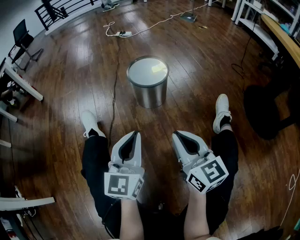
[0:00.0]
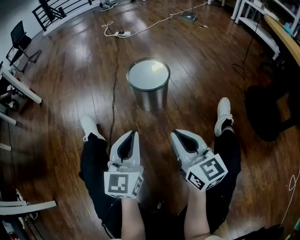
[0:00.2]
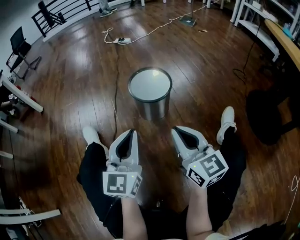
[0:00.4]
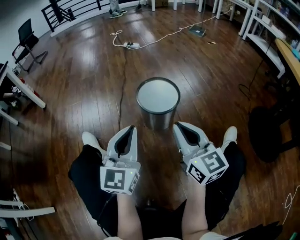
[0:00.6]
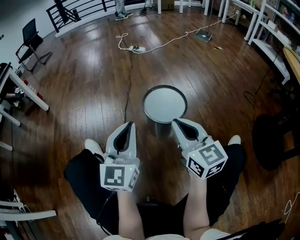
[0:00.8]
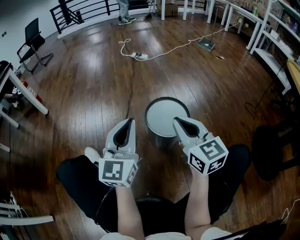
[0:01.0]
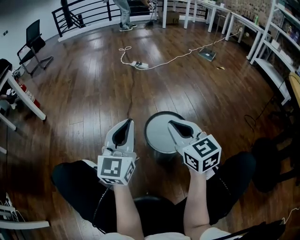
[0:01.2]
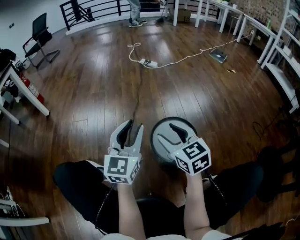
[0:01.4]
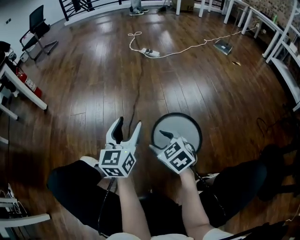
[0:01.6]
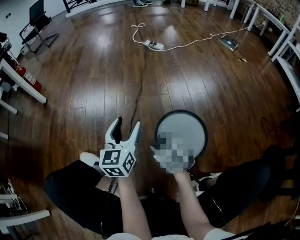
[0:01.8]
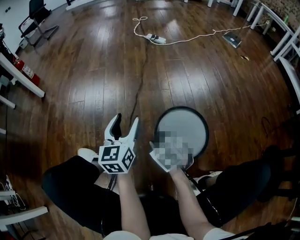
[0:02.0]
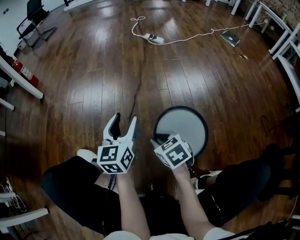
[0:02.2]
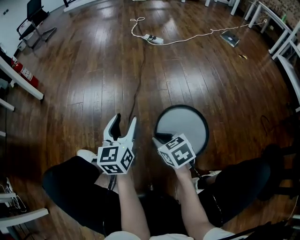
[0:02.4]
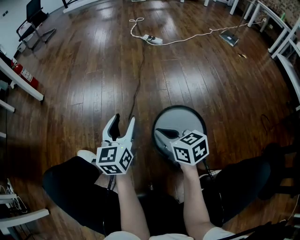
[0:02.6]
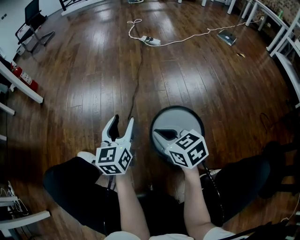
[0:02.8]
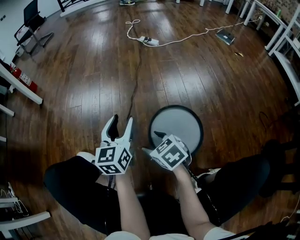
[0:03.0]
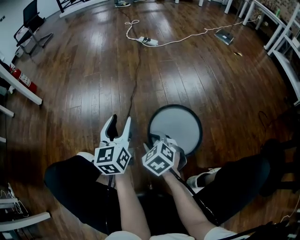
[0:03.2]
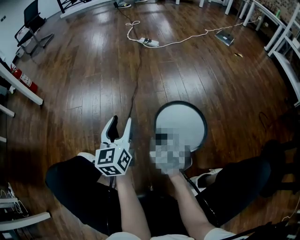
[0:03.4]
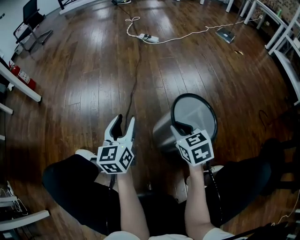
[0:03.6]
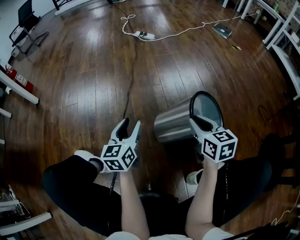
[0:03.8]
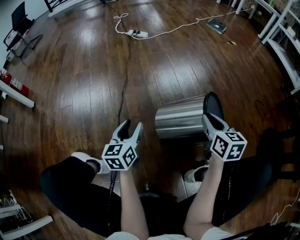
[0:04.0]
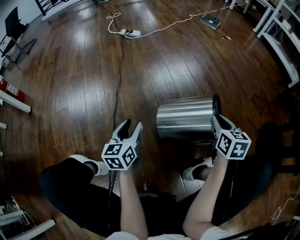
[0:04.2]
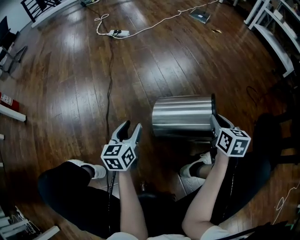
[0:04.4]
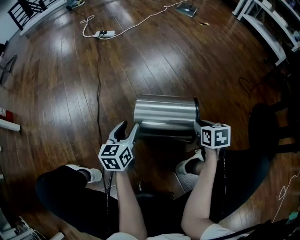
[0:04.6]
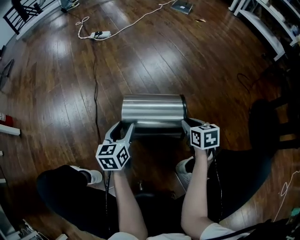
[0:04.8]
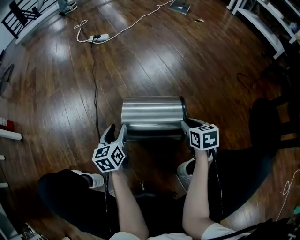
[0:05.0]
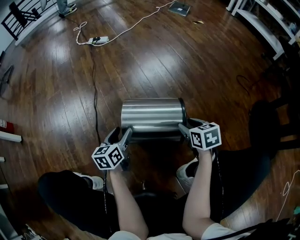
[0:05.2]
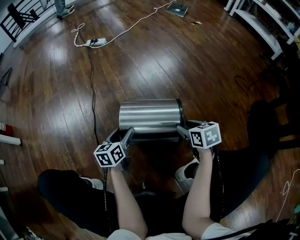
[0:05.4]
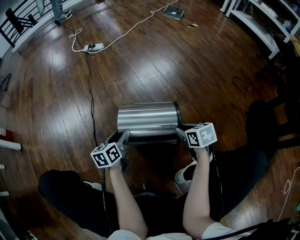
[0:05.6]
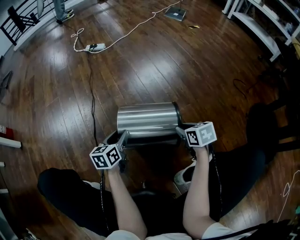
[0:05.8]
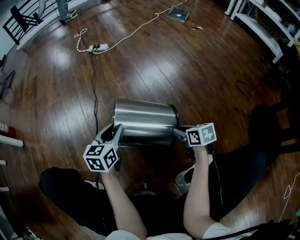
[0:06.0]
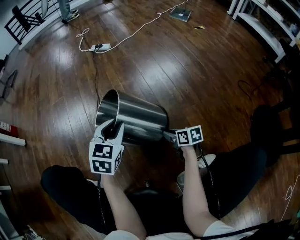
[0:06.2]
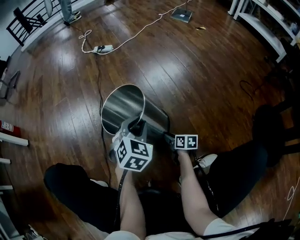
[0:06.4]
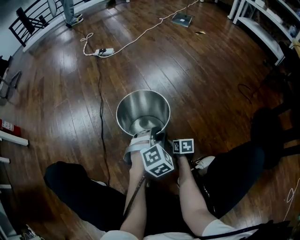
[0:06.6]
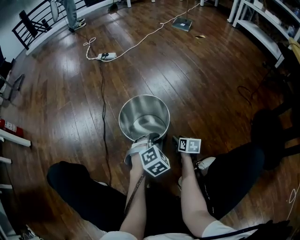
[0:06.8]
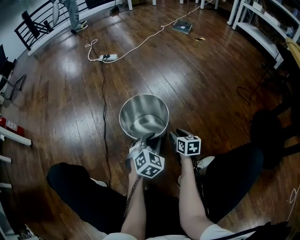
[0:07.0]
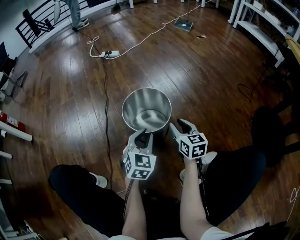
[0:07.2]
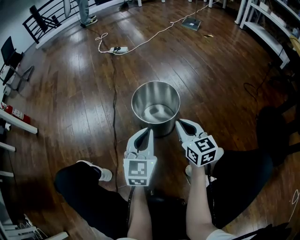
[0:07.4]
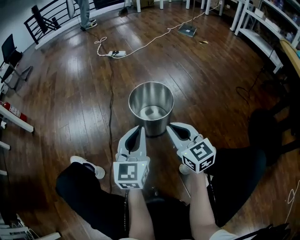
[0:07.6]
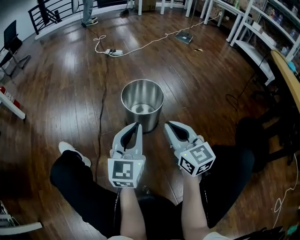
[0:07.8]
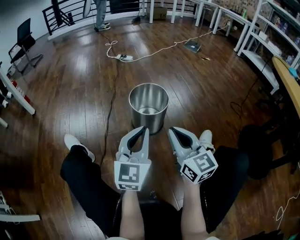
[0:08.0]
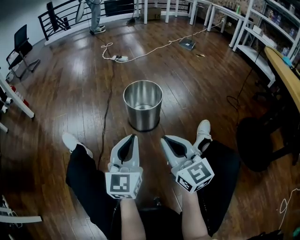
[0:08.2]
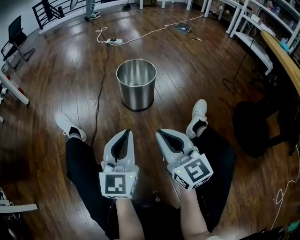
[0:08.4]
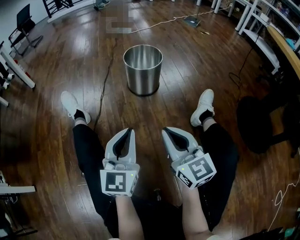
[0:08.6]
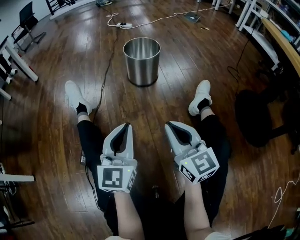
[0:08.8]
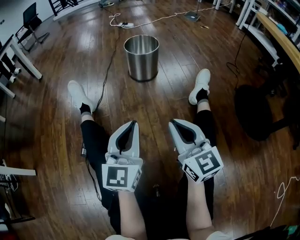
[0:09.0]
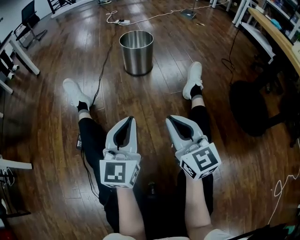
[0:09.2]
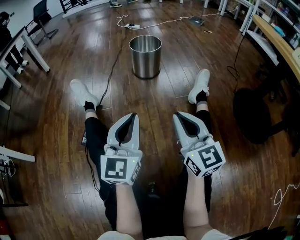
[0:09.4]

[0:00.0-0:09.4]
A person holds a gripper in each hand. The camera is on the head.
0:00.0 to 0:01.6: Both grippers are carried forward, about 40 cm. The left gripper opens, while the right gripper tilts its fingers some 40 degrees downward, and opens up.
0:01.6 to 0:03.2: The left gripper changes place by some 5 cm, while the right gripper swings up and down, about 10 cm each way, with 2 reversals, and closes its fingers.
0:03.2 to 0:04.8: The right gripper goes upward and returns, some 10 cm each way, twists about 50 degrees clockwise, seen from behind, and closes its fingers. Meanwhile the left gripper shifts by roughly 20 cm, and rotates some 30 degrees.
0:04.8 to 0:06.2: The left gripper shifts roughly 10 cm upward and forward, and changes its angle by roughly 30 degrees, while the right gripper goes some 10 cm downward and to the left, and turns by some 20 degrees.
0:06.2 to 0:07.8: The right gripper is displaced upward and backward by some 35 cm, angles its fingers upward, by approximately 30 degrees, and closes up. The left gripper goes about 25 cm backward and upward, and angles its fingers upward, by some 30 degrees.
0:07.8 to 0:09.4: Both grippers move backward, some 40 cm.

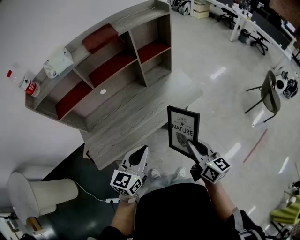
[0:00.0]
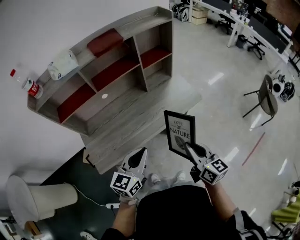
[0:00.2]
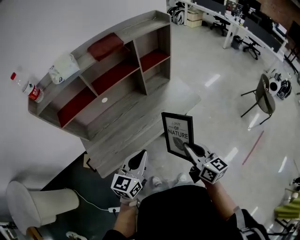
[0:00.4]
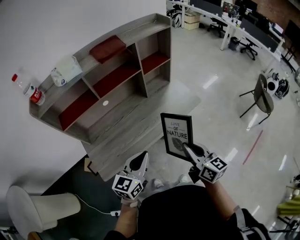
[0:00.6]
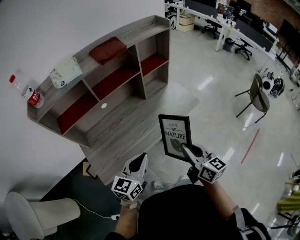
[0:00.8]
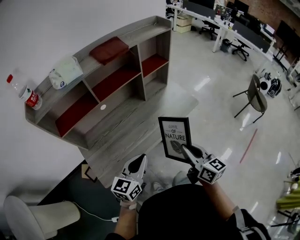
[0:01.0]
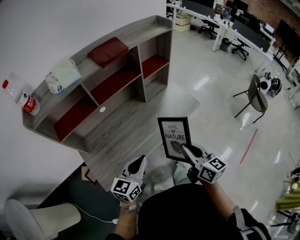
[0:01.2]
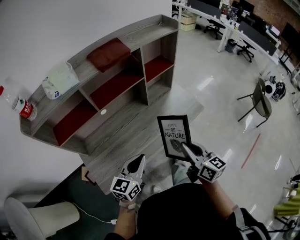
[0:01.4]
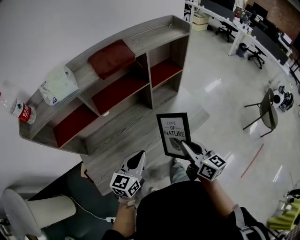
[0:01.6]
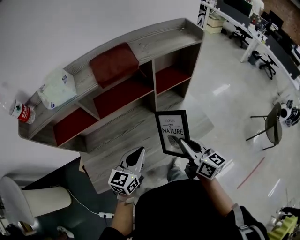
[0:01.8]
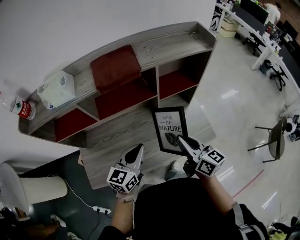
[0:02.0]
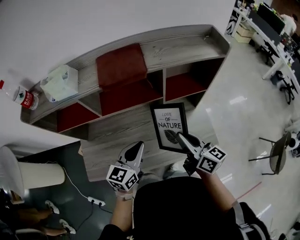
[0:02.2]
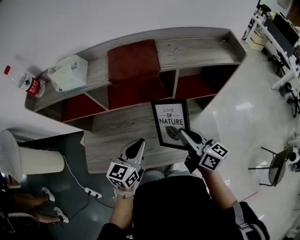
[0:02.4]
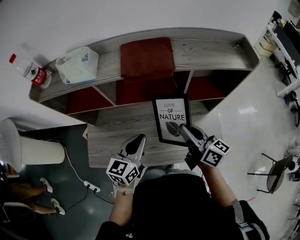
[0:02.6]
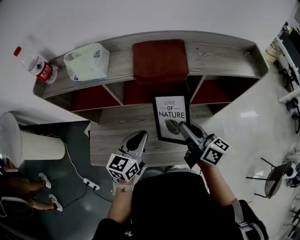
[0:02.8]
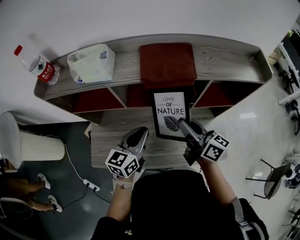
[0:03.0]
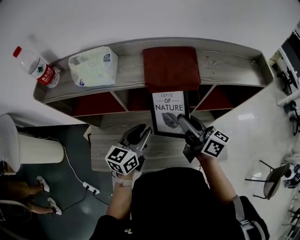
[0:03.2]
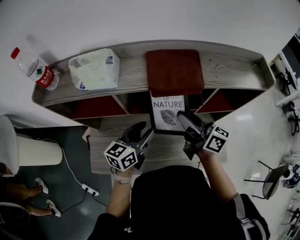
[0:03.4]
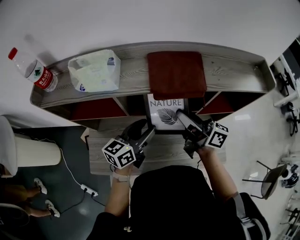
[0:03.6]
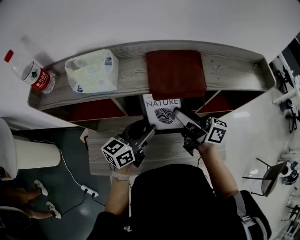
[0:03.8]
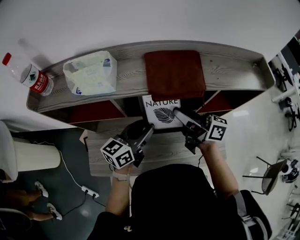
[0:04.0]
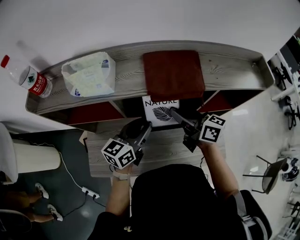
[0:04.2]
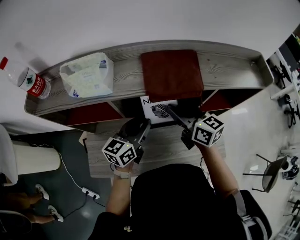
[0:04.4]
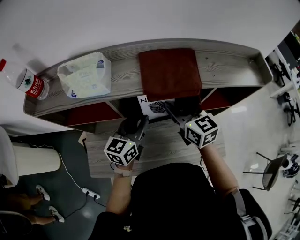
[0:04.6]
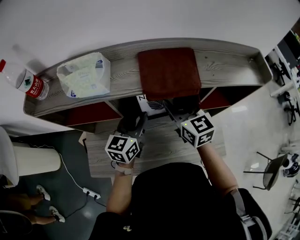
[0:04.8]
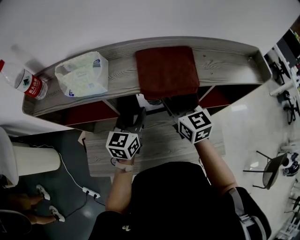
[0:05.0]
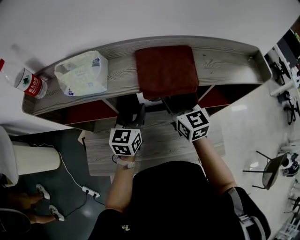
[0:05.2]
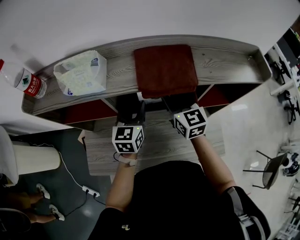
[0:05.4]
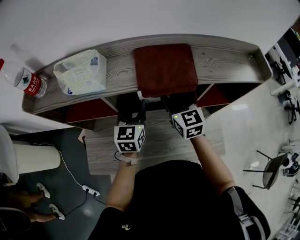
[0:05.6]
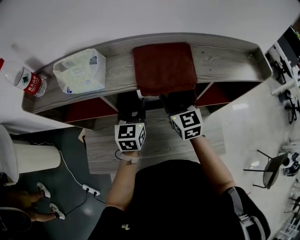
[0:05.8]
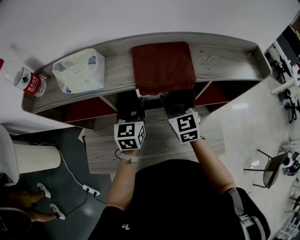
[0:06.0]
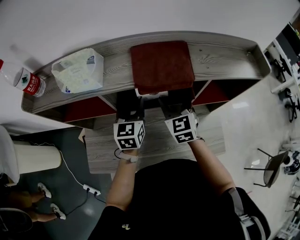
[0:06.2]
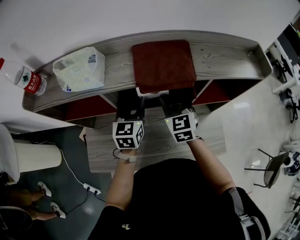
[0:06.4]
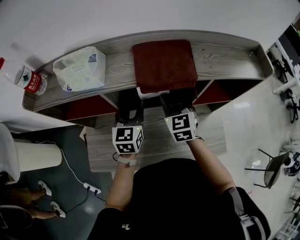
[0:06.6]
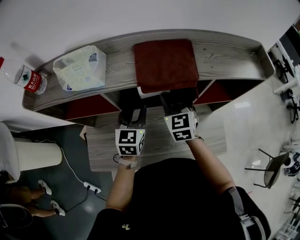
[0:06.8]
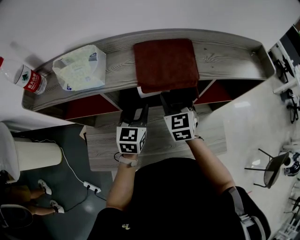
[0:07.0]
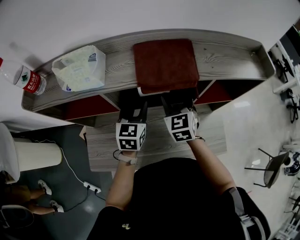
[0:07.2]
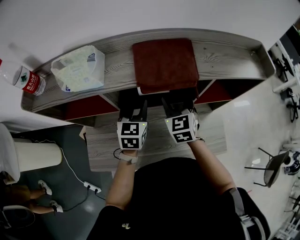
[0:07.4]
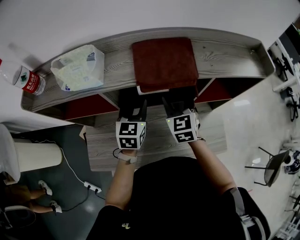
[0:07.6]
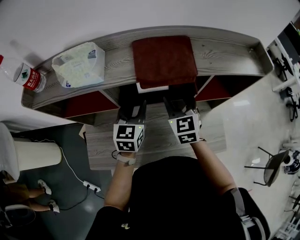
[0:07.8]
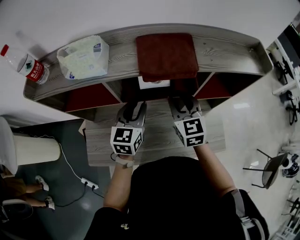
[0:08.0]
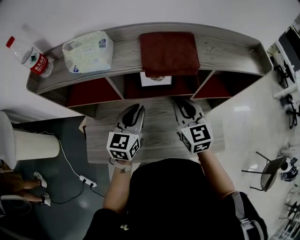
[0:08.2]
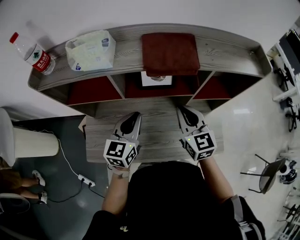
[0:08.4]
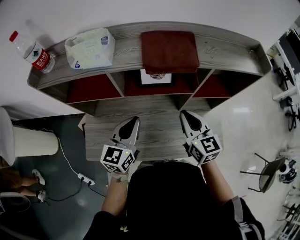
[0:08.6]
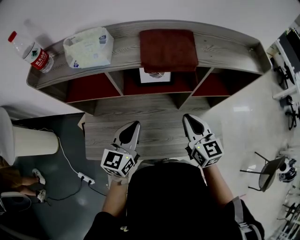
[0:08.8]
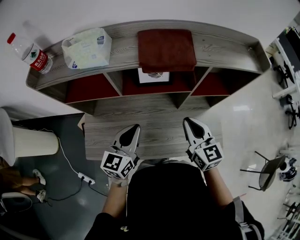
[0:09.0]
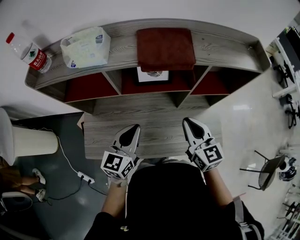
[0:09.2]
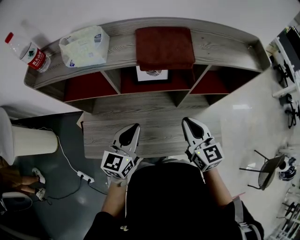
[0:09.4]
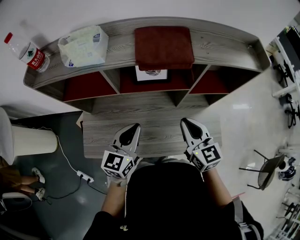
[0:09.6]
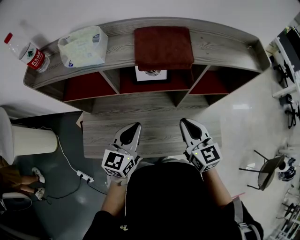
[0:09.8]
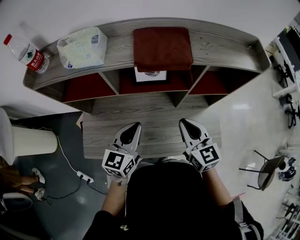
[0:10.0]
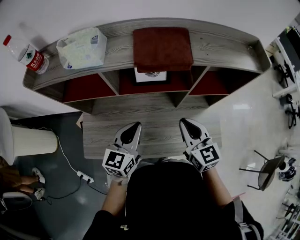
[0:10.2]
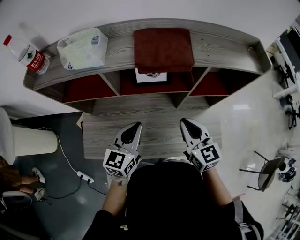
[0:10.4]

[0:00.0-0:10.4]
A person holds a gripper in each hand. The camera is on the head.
0:00.0 to 0:01.4: The grippers both shift to the left and forward by roughly 15 cm.
0:01.4 to 0:03.0: The right gripper ends up about 30 cm from where it was, and rotates about 40 degrees. The left gripper shifts by some 25 cm, and turns by roughly 30 degrees.
0:03.0 to 0:04.4: Both grippers move forward, some 10 cm. The right gripper turns by some 20 degrees, and opens its fingers. The left gripper opens.
0:04.4 to 0:06.0: The left gripper moves forward, approximately 5 cm, and rotates about 30 degrees; the right gripper changes its angle by about 40 degrees, and opens.
0:06.0 to 0:07.4: There are only small adjustments of the grippers.
0:07.4 to 0:09.0: Both grippers travel together backward, approximately 15 cm. The left gripper closes up. Meanwhile the right gripper changes its angle by about 30 degrees, and closes its fingers.
0:09.0 to 0:10.4: The grippers stay close to where they were, moving slightly.

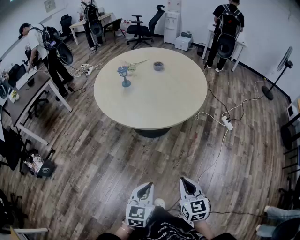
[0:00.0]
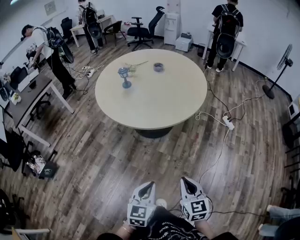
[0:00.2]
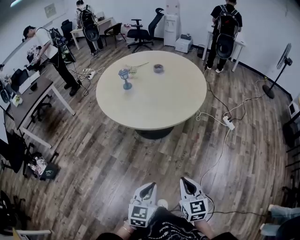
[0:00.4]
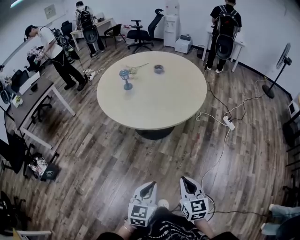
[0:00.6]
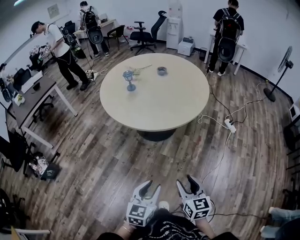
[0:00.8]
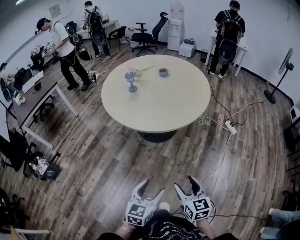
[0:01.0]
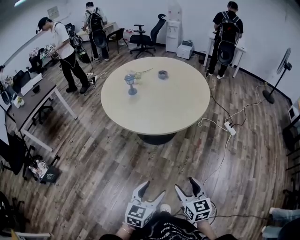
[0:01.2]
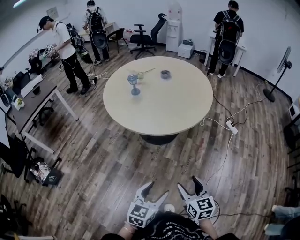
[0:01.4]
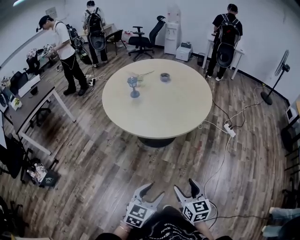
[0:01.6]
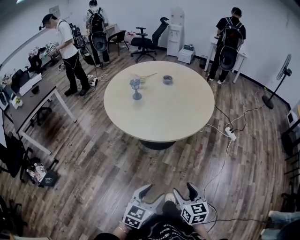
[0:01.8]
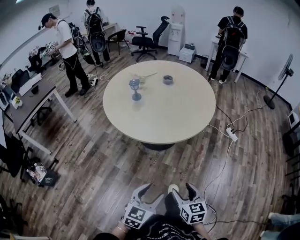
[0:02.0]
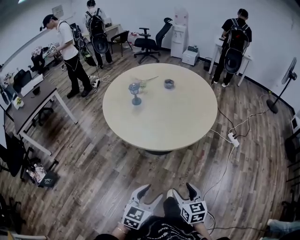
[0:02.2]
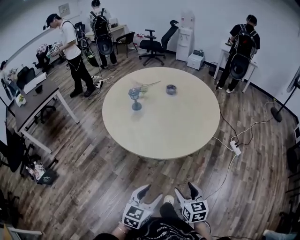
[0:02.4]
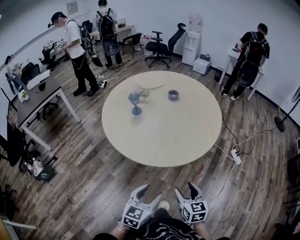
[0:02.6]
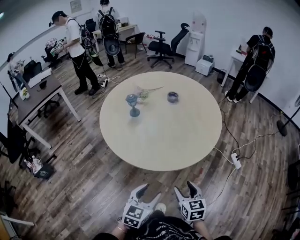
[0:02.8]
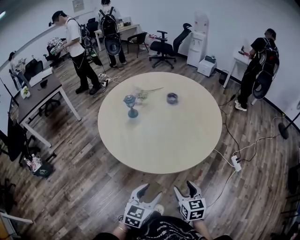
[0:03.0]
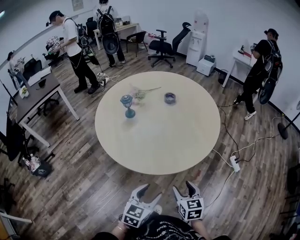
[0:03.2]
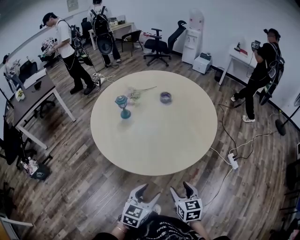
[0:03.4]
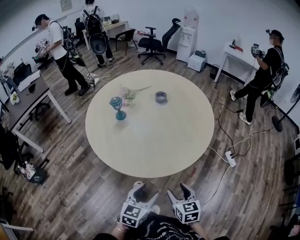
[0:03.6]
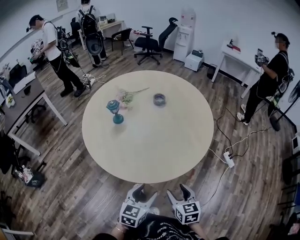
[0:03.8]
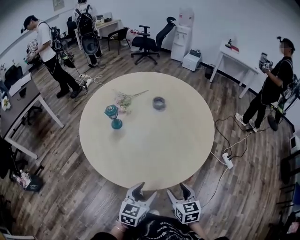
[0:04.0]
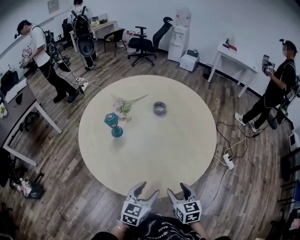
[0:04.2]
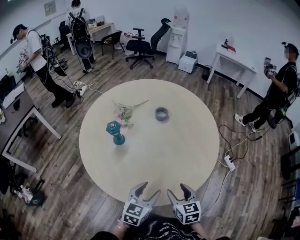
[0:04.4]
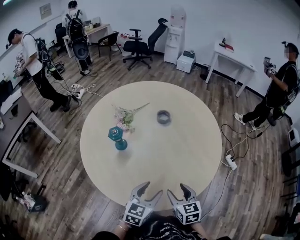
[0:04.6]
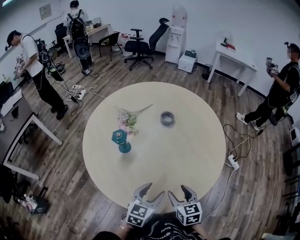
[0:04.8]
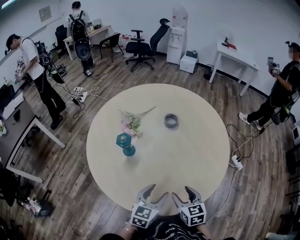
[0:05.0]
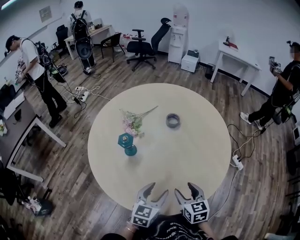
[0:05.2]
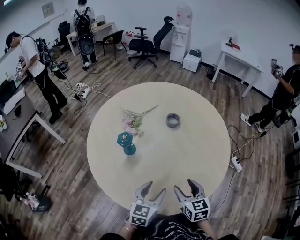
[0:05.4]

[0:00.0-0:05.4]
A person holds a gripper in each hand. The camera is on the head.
0:00.0 to 0:01.4: The right gripper opens up. Meanwhile the left gripper opens up.
0:01.4 to 0:02.8: Both grippers travel together forward, some 25 cm.
0:02.8 to 0:04.0: The grippers both shift forward by roughly 15 cm.
0:04.0 to 0:05.4: The grippers both shift forward and to the left by roughly 20 cm.
